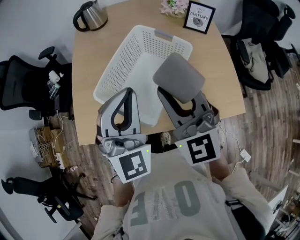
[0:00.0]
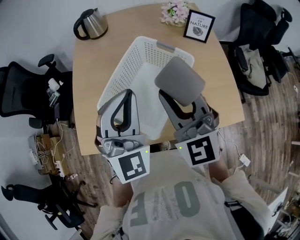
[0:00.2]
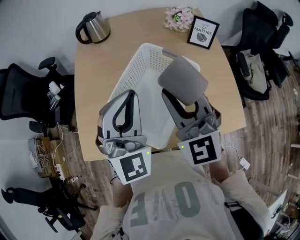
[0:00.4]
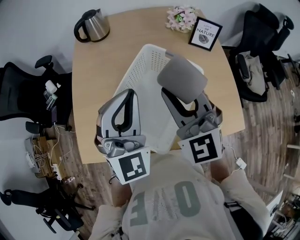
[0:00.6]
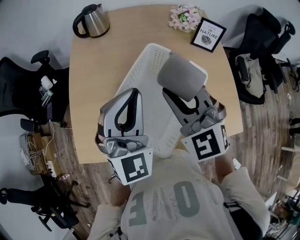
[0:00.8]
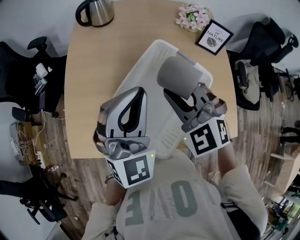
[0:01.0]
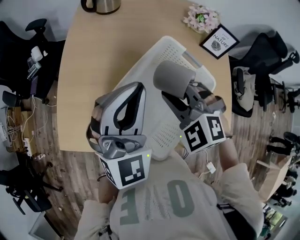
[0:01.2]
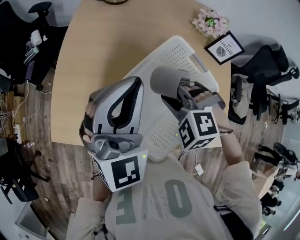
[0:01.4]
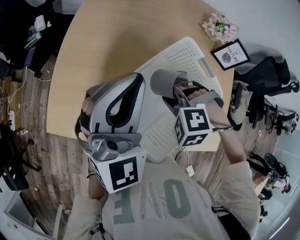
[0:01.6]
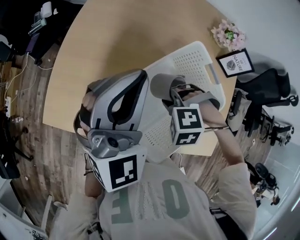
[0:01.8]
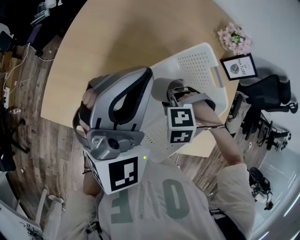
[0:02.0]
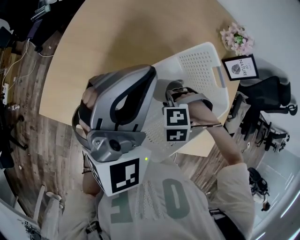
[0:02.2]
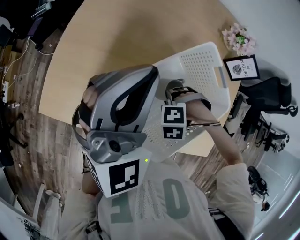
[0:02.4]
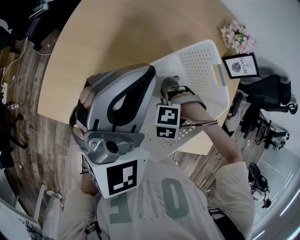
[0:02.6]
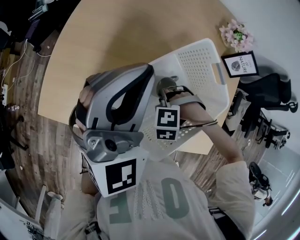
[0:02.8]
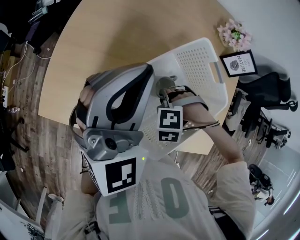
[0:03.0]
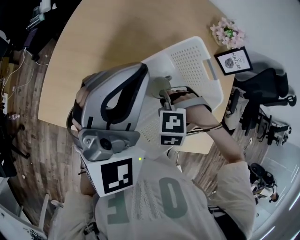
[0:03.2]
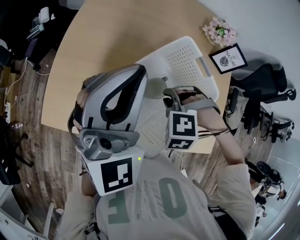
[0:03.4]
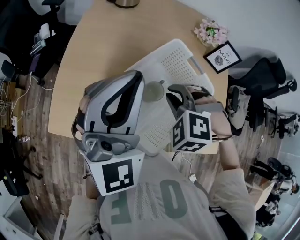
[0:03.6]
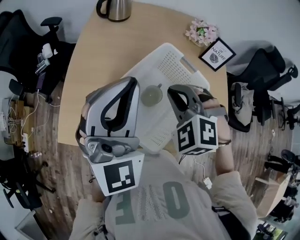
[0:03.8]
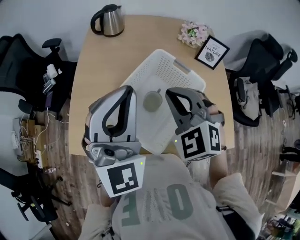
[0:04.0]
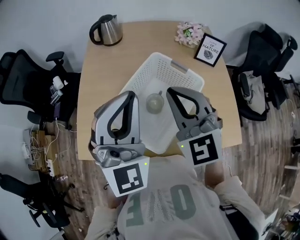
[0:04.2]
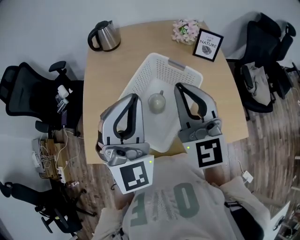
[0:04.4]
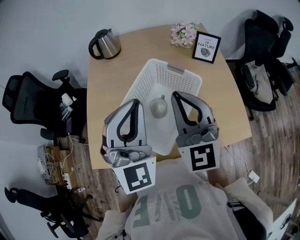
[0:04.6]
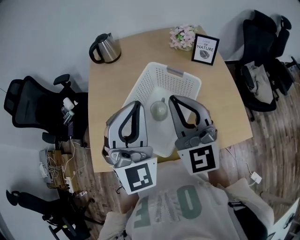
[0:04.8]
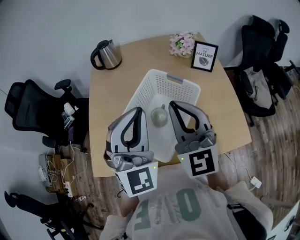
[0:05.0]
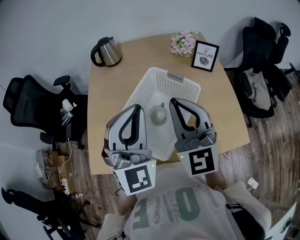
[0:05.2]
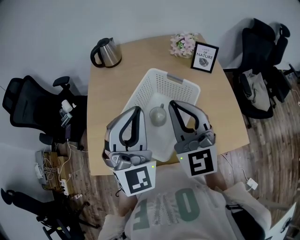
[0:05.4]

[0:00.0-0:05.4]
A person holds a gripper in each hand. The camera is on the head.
0:00.0 to 0:01.4: The left gripper goes about 15 cm forward and to the left; the right gripper moves downward and forward, some 20 cm, and angles its fingers downward, by approximately 60 degrees.
0:01.4 to 0:02.8: The right gripper goes roughly 15 cm downward, and changes its angle by some 30 degrees.
0:02.8 to 0:04.0: The right gripper goes some 30 cm upward, and tips its fingers upward by approximately 50 degrees. Meanwhile the left gripper heads upward, covering about 10 cm.
0:04.0 to 0:05.4: The right gripper heads upward, covering some 5 cm, and tips its fingers upward by about 40 degrees, while the left gripper is displaced to the right by about 5 cm.

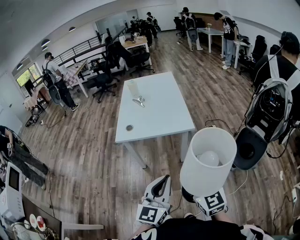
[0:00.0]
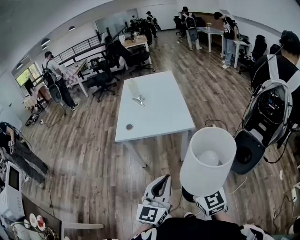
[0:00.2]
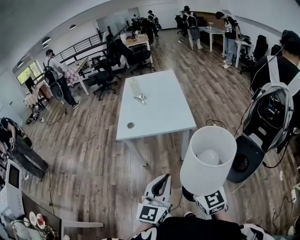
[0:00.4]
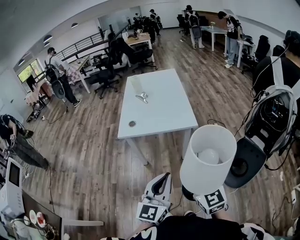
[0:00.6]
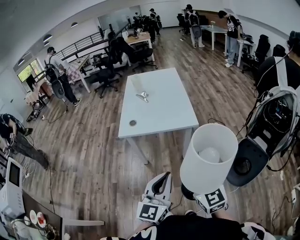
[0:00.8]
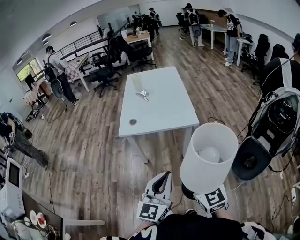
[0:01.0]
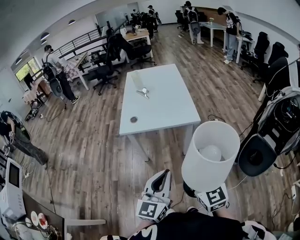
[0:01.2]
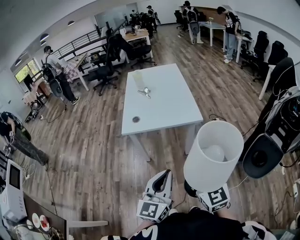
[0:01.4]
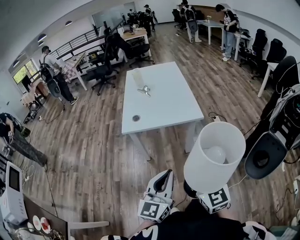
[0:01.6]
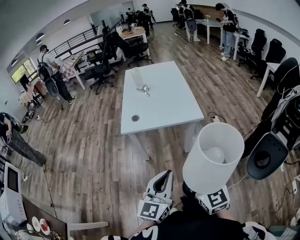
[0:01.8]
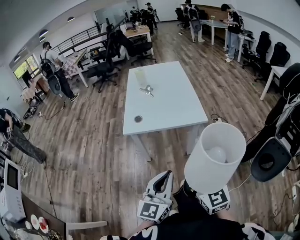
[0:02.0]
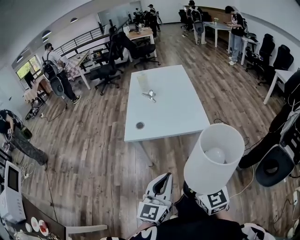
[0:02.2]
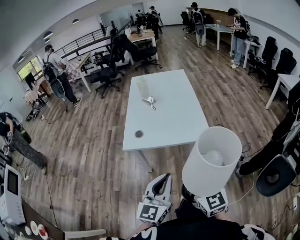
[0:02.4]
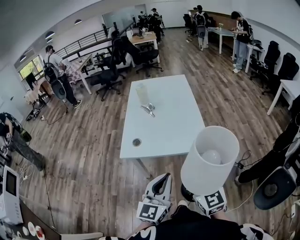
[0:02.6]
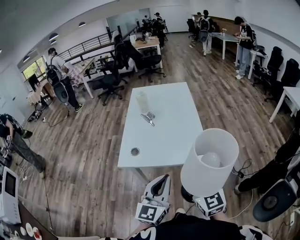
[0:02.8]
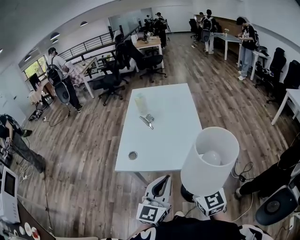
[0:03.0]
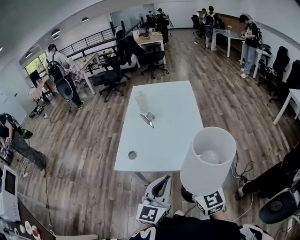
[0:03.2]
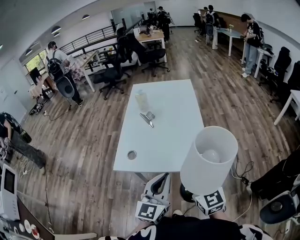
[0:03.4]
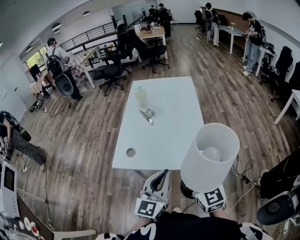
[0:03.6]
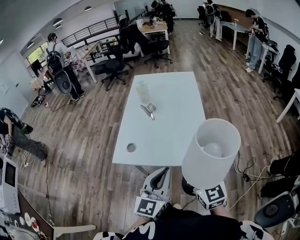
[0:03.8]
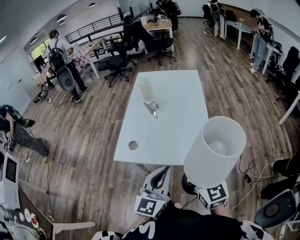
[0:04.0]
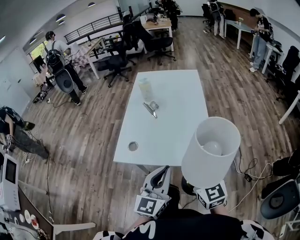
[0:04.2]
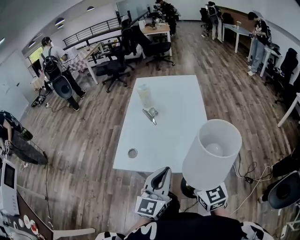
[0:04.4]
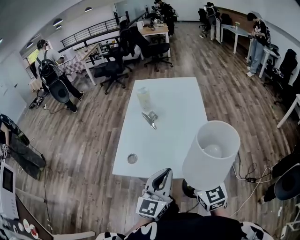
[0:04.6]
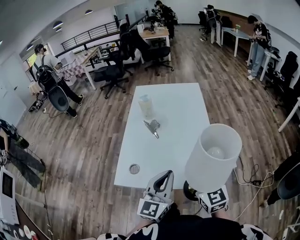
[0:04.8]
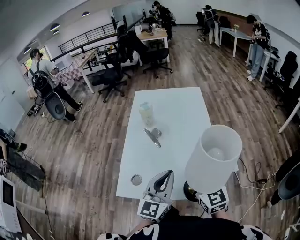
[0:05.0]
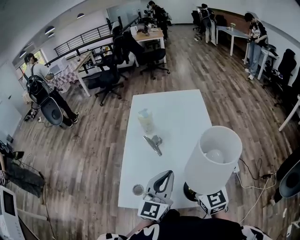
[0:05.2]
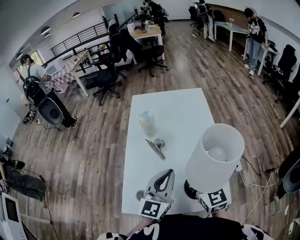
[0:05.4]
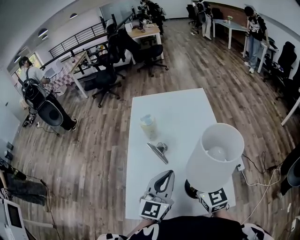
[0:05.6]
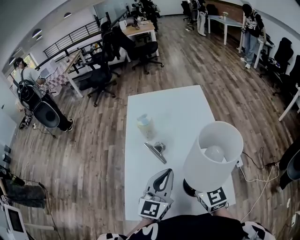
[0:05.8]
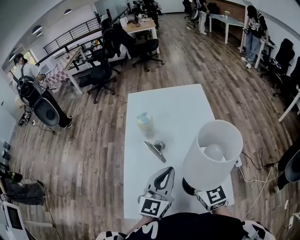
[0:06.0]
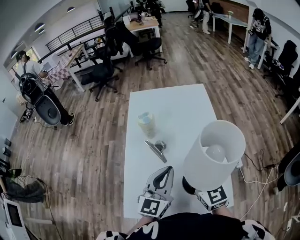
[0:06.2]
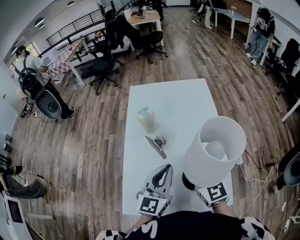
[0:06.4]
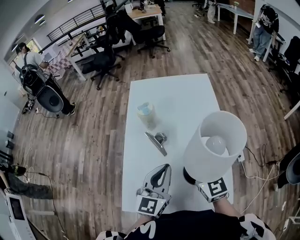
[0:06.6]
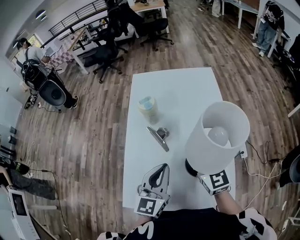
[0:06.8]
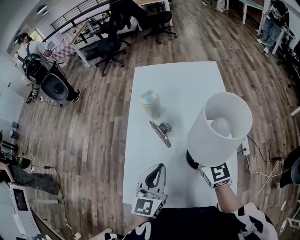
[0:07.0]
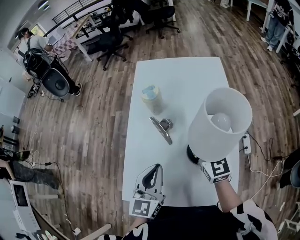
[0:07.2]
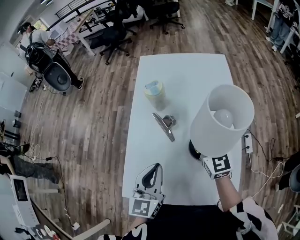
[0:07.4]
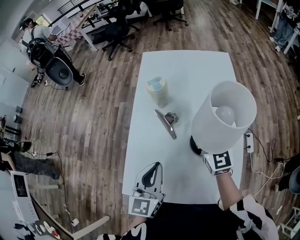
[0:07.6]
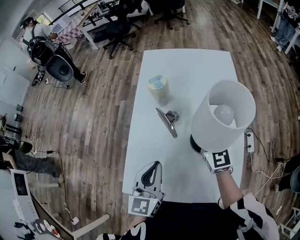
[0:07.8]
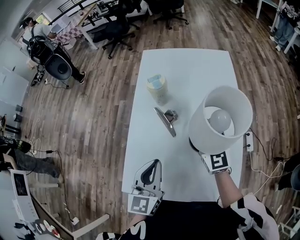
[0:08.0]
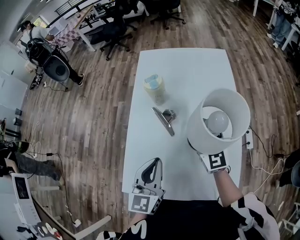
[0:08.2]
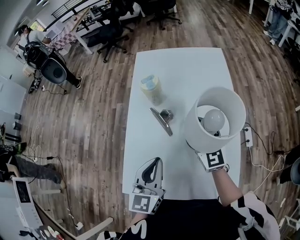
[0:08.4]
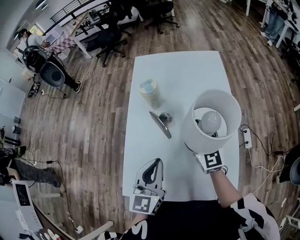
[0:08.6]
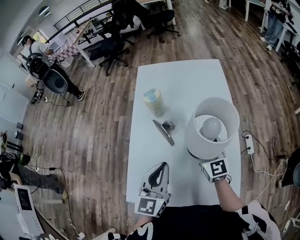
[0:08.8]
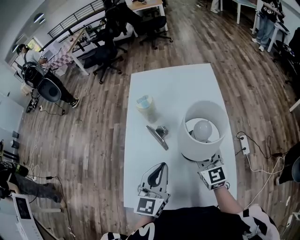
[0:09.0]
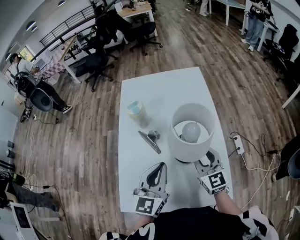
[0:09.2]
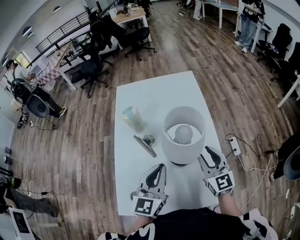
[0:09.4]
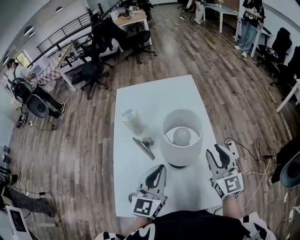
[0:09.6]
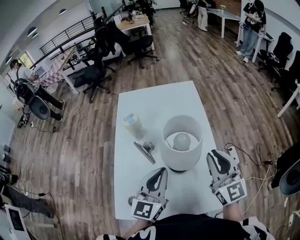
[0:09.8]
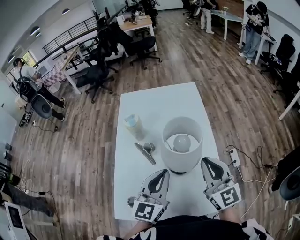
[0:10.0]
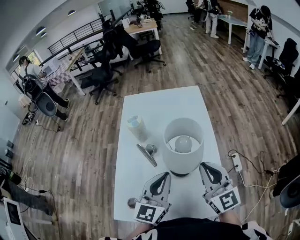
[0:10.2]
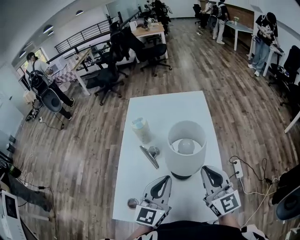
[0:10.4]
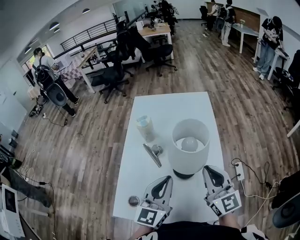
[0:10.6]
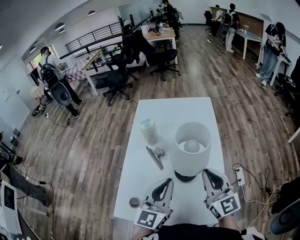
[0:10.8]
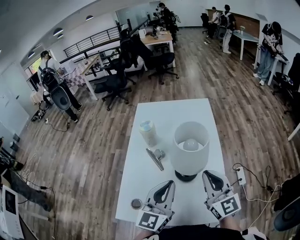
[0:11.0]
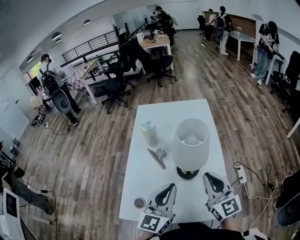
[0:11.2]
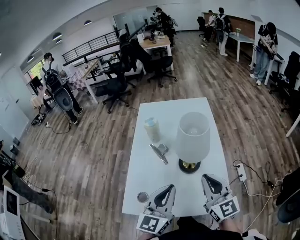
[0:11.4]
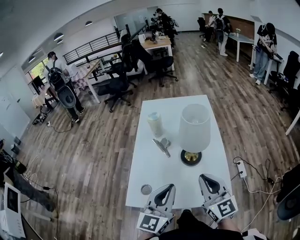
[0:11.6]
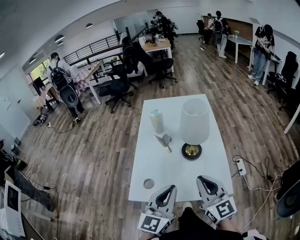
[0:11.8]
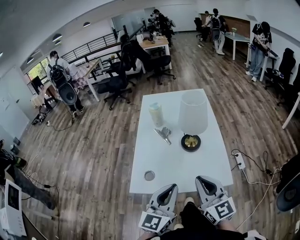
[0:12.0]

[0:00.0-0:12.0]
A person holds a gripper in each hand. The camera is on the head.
0:00.0 to 0:01.6: The two grippers go some 5 cm to the left.
0:01.6 to 0:03.0: Both grippers move forward, about 25 cm.
0:03.0 to 0:04.4: The two grippers go some 5 cm forward.
0:04.4 to 0:06.0: The two grippers go roughly 25 cm forward.
0:06.0 to 0:07.6: The left gripper moves to the left and downward, about 10 cm, and changes its angle by about 20 degrees. Meanwhile the right gripper moves forward and downward, roughly 15 cm.
0:07.6 to 0:09.0: The right gripper shifts some 5 cm backward, and opens its fingers, while the left gripper ends up approximately 5 cm from where it was.
0:09.0 to 0:10.4: The right gripper heads upward, to the right and backward, covering some 15 cm, and closes. Meanwhile the left gripper is displaced to the right by some 5 cm.
0:10.4 to 0:12.0: The left gripper moves backward, some 20 cm. The right gripper moves backward and to the left, approximately 25 cm.

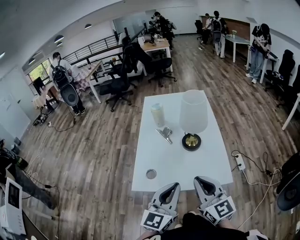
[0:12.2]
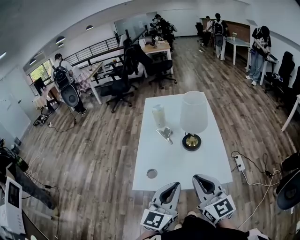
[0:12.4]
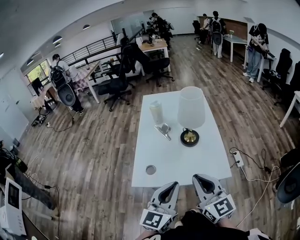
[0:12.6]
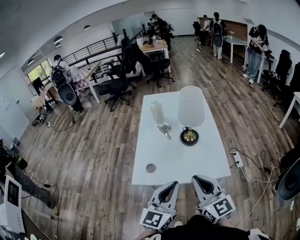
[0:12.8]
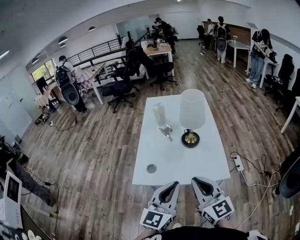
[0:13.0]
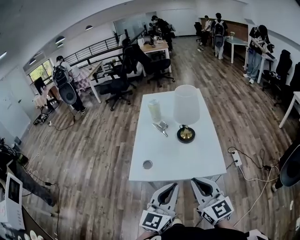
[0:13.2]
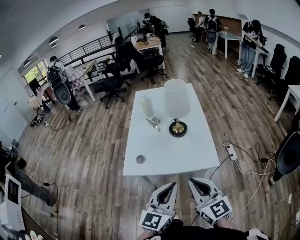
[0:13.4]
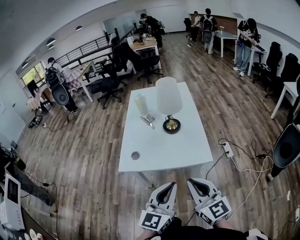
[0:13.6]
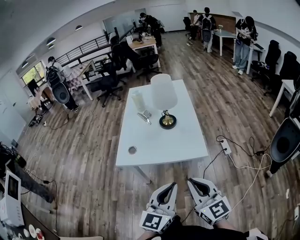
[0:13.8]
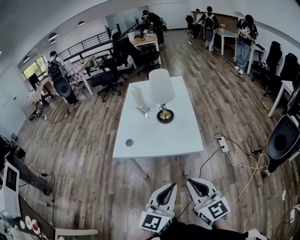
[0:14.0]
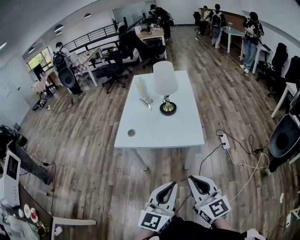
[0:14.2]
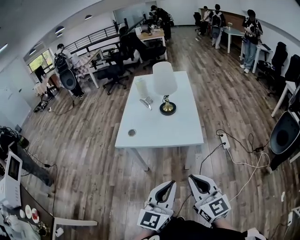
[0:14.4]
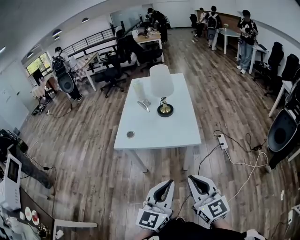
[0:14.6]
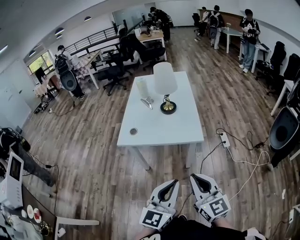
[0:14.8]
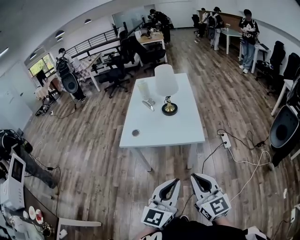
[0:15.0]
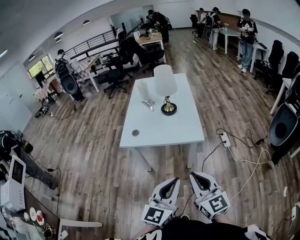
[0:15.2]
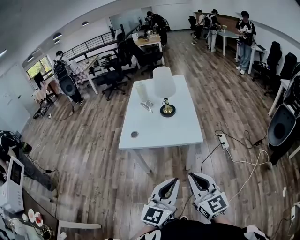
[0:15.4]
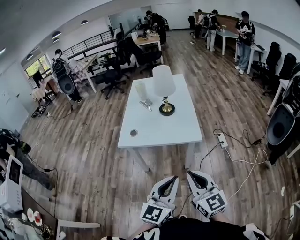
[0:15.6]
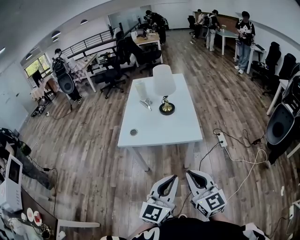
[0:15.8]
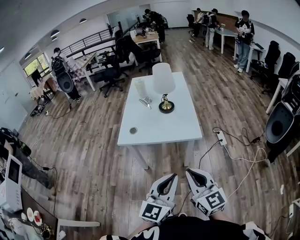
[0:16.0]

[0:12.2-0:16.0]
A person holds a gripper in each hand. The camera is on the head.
0:12.2 to 0:13.4: The two grippers go some 10 cm backward.
0:13.4 to 0:14.8: Both grippers travel together backward and to the right, some 20 cm.
0:14.8 to 0:16.0: The grippers move only a little.

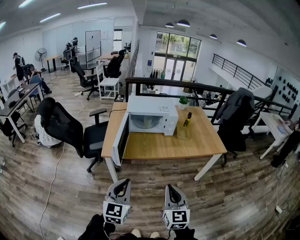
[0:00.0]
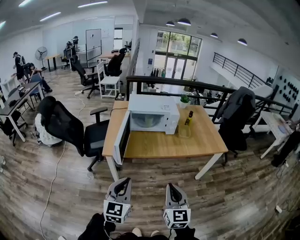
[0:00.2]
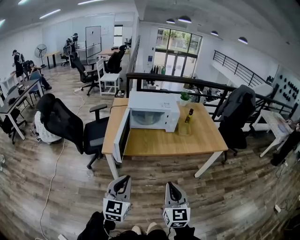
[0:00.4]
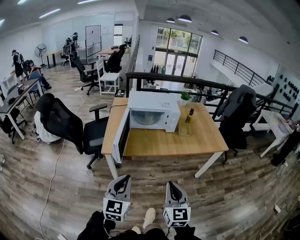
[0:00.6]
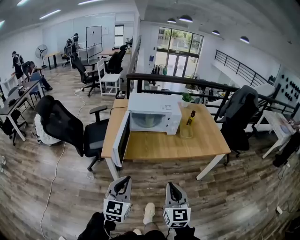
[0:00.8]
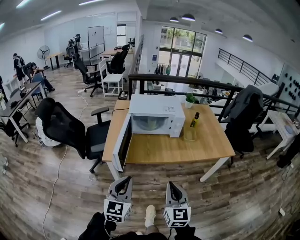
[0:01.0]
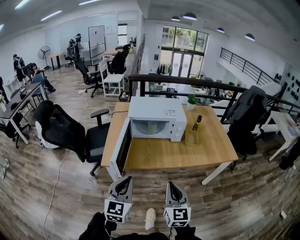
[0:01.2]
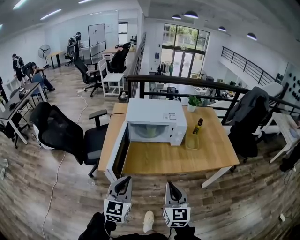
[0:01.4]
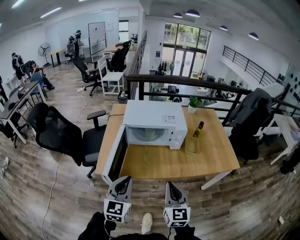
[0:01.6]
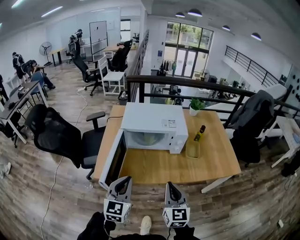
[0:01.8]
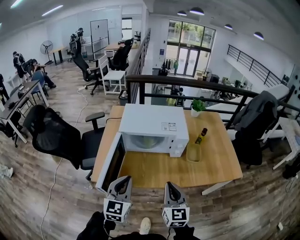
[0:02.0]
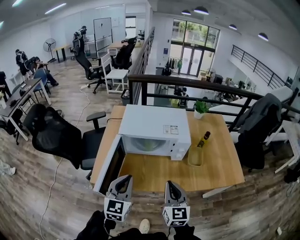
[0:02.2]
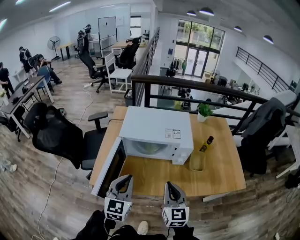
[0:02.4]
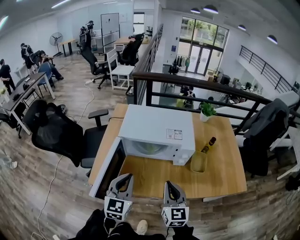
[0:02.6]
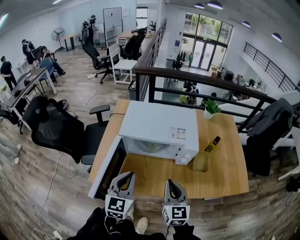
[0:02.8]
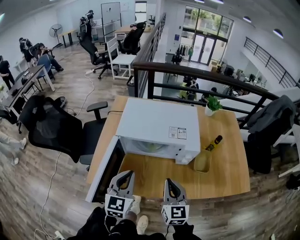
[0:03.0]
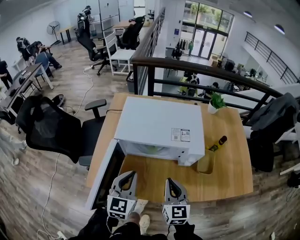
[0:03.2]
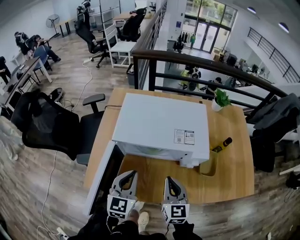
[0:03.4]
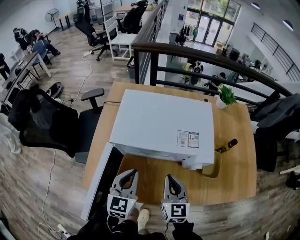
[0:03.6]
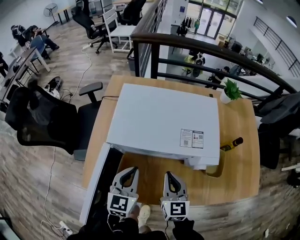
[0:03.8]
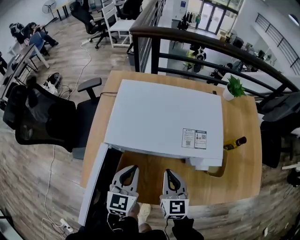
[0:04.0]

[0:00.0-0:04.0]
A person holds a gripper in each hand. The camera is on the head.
0:00.0 to 0:01.4: The two grippers go approximately 25 cm forward.
0:01.4 to 0:02.6: Both grippers move forward, about 25 cm.
0:02.6 to 0:04.0: Both grippers move forward and downward, some 25 cm.
